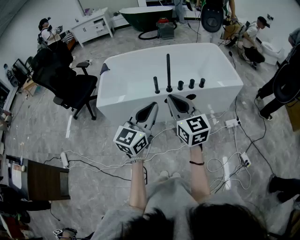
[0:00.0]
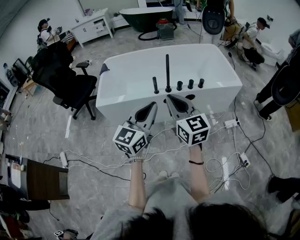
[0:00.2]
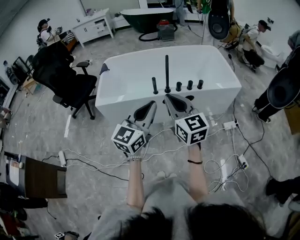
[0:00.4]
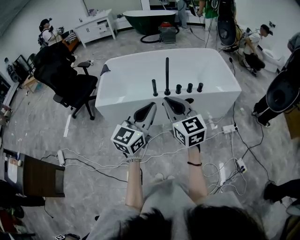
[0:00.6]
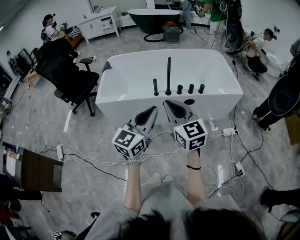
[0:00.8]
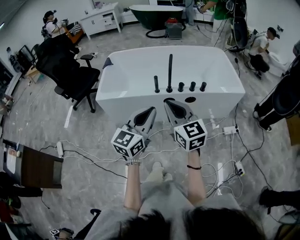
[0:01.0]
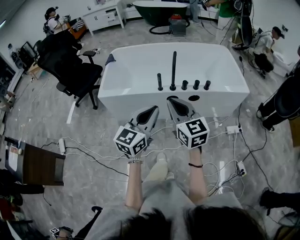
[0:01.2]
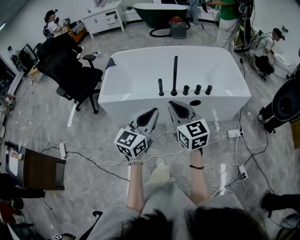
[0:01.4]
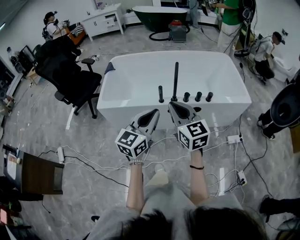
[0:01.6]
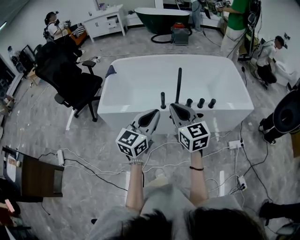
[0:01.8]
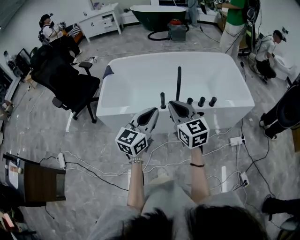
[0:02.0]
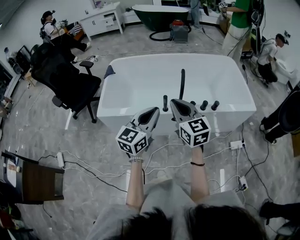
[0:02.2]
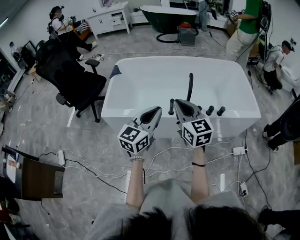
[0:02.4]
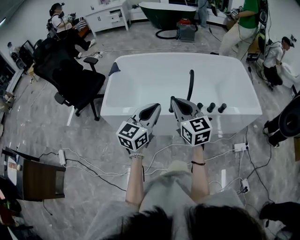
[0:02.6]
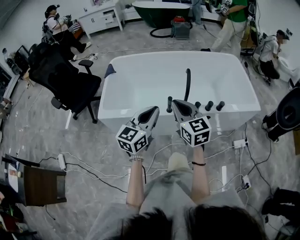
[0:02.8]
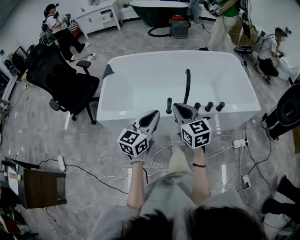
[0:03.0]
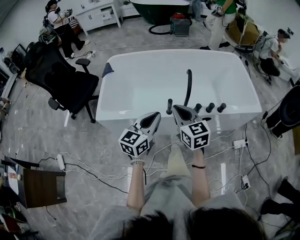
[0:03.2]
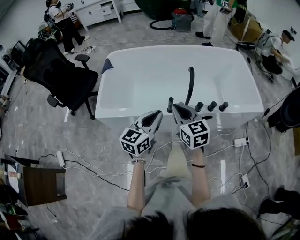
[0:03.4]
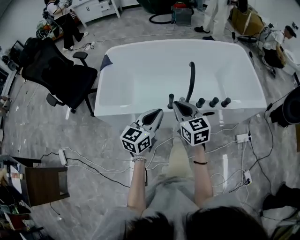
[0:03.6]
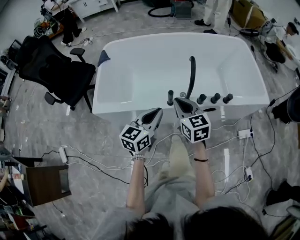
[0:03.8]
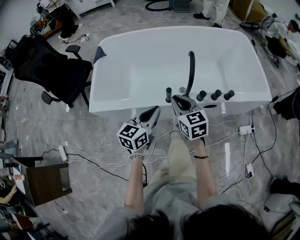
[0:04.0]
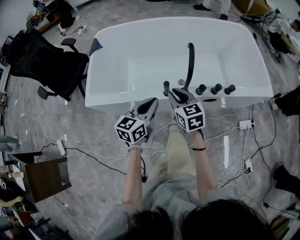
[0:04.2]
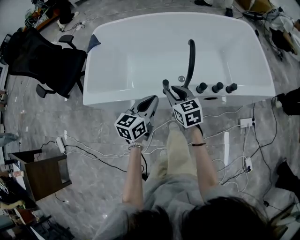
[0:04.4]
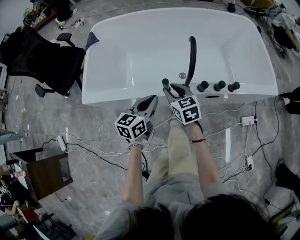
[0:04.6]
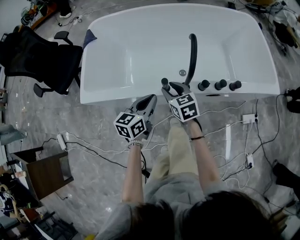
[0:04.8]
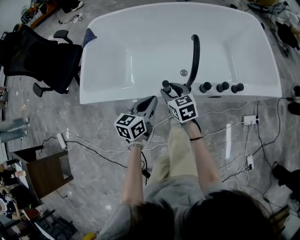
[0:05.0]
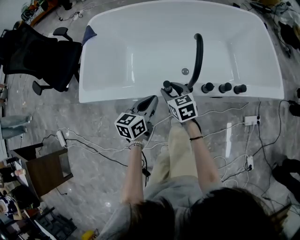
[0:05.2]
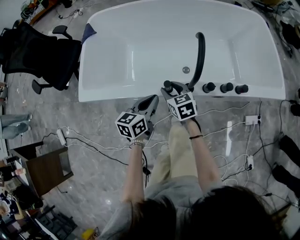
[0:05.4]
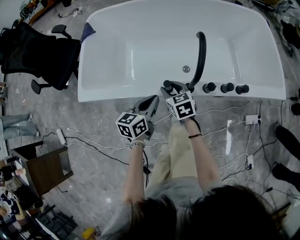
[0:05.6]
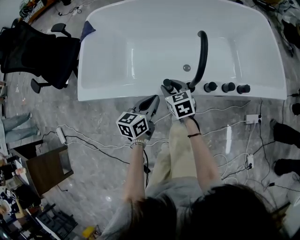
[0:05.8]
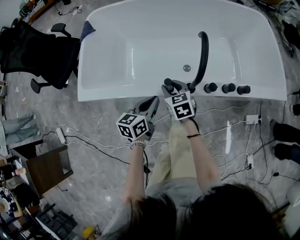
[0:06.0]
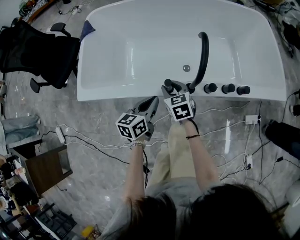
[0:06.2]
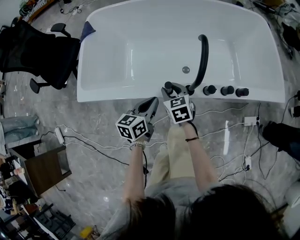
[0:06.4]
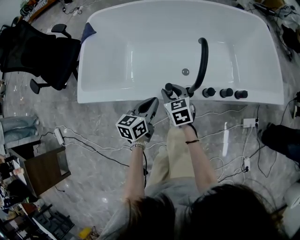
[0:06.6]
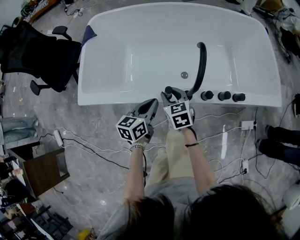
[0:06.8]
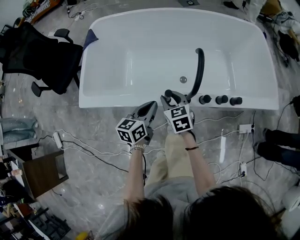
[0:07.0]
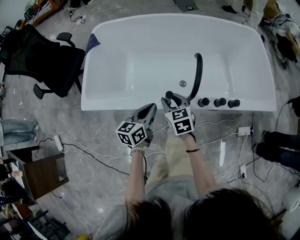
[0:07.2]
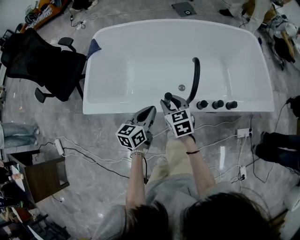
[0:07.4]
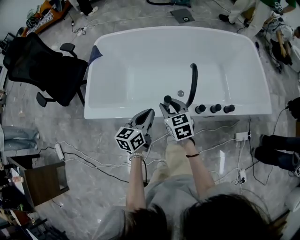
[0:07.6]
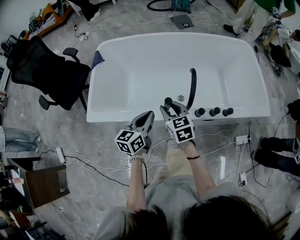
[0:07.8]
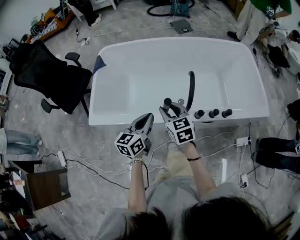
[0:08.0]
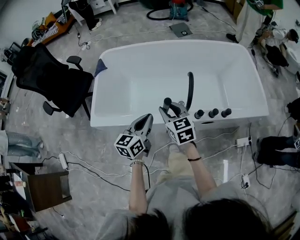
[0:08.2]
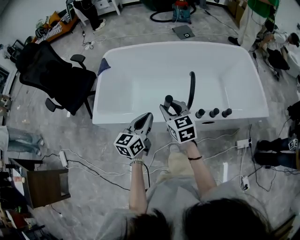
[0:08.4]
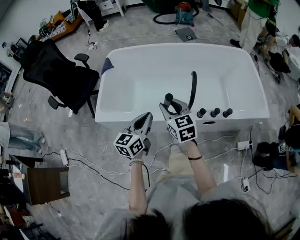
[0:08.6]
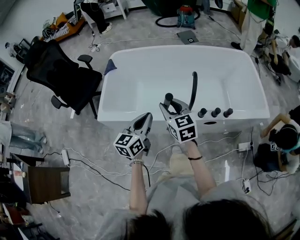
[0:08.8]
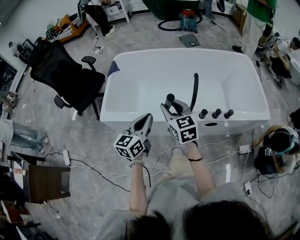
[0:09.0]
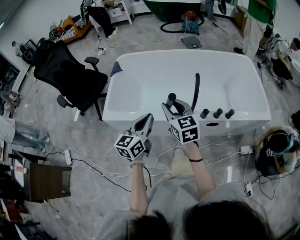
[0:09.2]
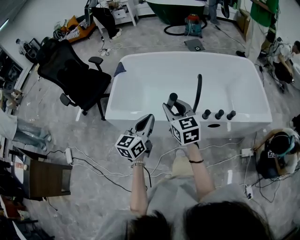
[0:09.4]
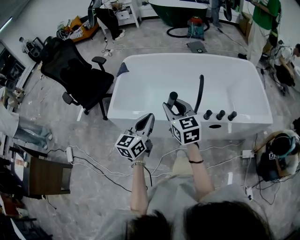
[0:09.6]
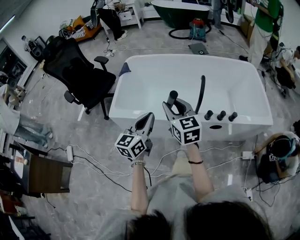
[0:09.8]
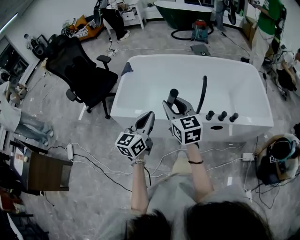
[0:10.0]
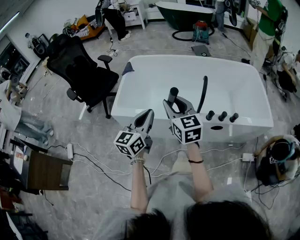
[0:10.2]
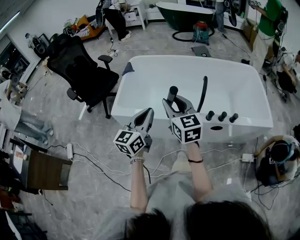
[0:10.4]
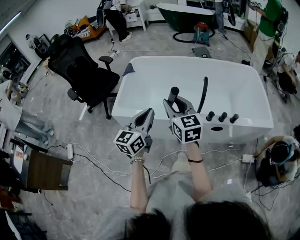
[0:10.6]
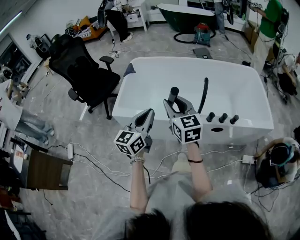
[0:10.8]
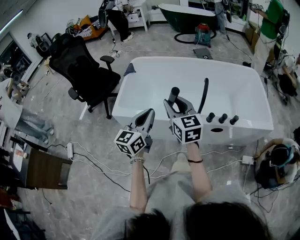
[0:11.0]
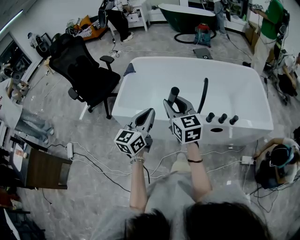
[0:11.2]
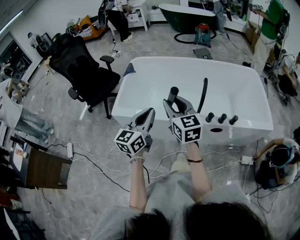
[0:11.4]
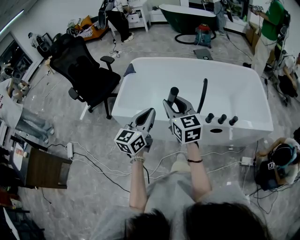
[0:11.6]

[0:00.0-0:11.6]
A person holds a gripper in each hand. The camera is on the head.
0:00.0 to 0:01.4: The left gripper changes place by about 5 cm; the right gripper shifts by about 5 cm.
0:01.4 to 0:02.8: The right gripper heads forward, covering some 20 cm, while the left gripper travels forward and to the left by about 20 cm.
0:02.8 to 0:04.4: Both grippers move downward and forward, some 25 cm. The left gripper turns by roughly 20 degrees; the right gripper rotates approximately 20 degrees.
0:04.4 to 0:05.8: The left gripper heads downward, covering some 10 cm. The right gripper heads downward and forward, covering approximately 15 cm.
0:05.8 to 0:07.2: Both grippers travel together upward, about 5 cm.
0:07.2 to 0:08.8: The right gripper moves upward, roughly 20 cm. Meanwhile the left gripper travels upward and backward by roughly 15 cm.
0:08.8 to 0:10.2: The left gripper moves backward, upward and to the left, approximately 10 cm. Meanwhile the right gripper heads upward and backward, covering about 10 cm.
0:10.2 to 0:11.6: The grippers make only small movements.

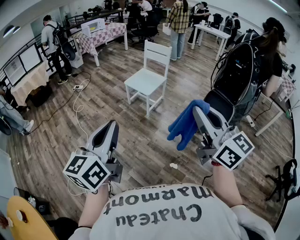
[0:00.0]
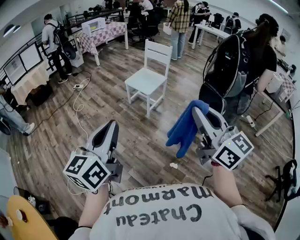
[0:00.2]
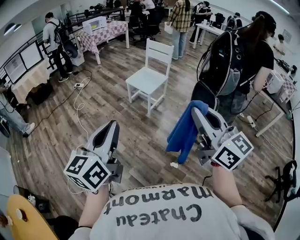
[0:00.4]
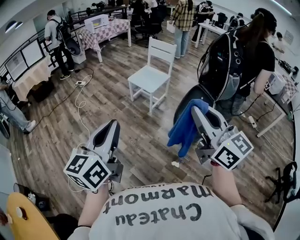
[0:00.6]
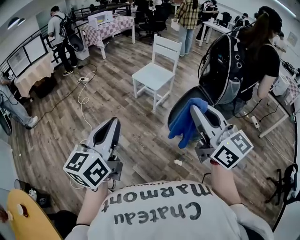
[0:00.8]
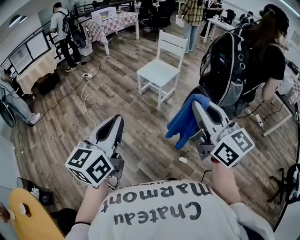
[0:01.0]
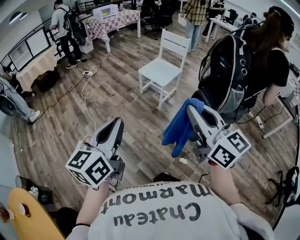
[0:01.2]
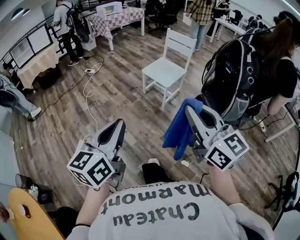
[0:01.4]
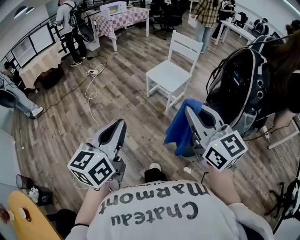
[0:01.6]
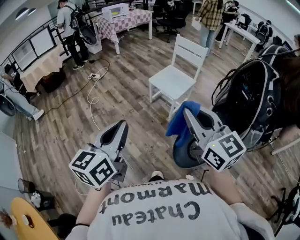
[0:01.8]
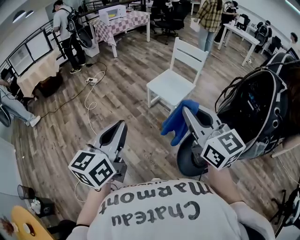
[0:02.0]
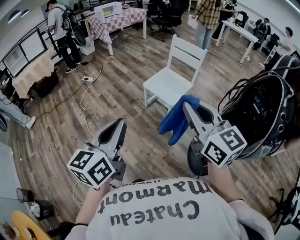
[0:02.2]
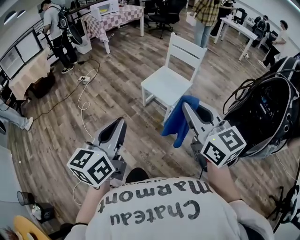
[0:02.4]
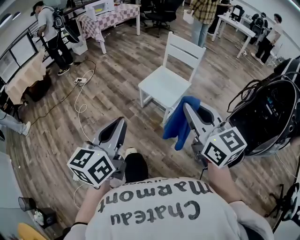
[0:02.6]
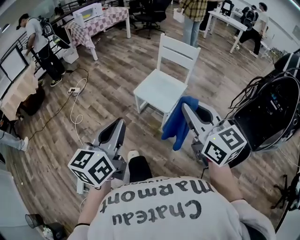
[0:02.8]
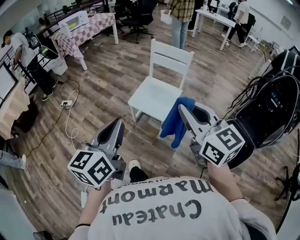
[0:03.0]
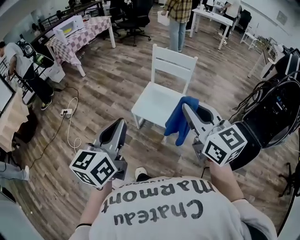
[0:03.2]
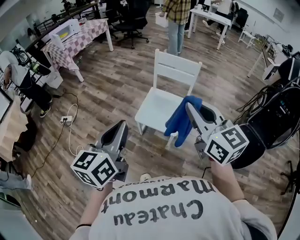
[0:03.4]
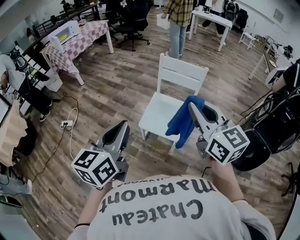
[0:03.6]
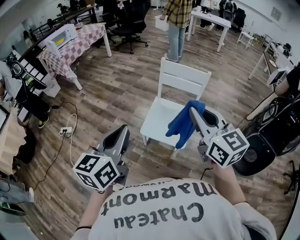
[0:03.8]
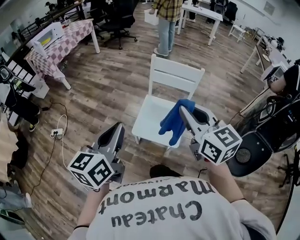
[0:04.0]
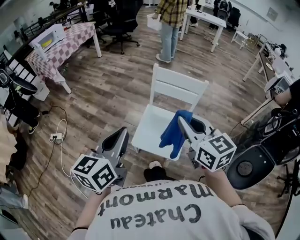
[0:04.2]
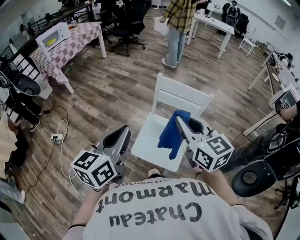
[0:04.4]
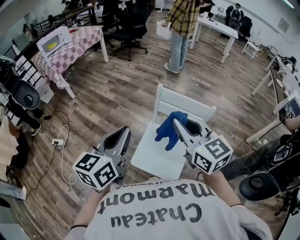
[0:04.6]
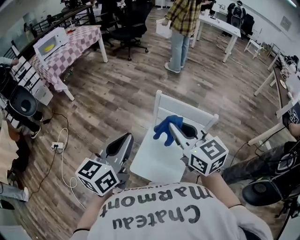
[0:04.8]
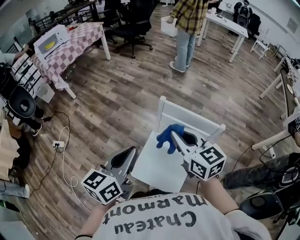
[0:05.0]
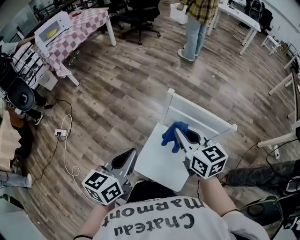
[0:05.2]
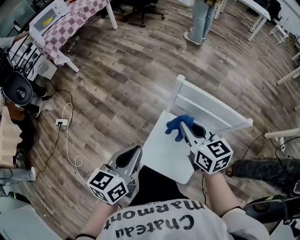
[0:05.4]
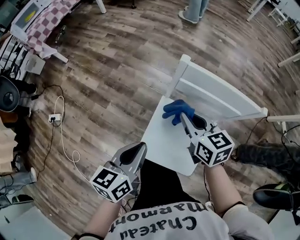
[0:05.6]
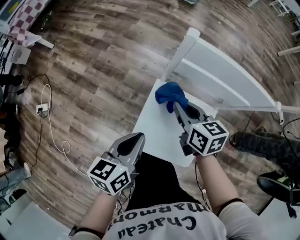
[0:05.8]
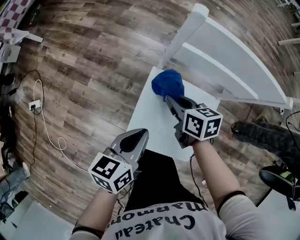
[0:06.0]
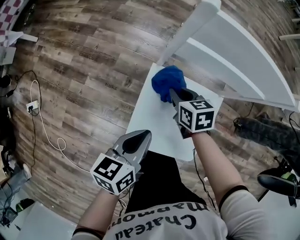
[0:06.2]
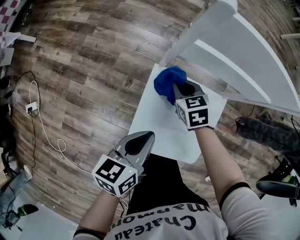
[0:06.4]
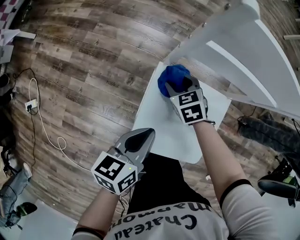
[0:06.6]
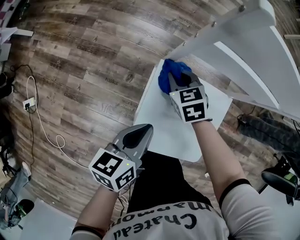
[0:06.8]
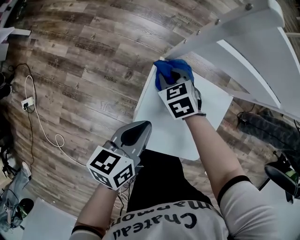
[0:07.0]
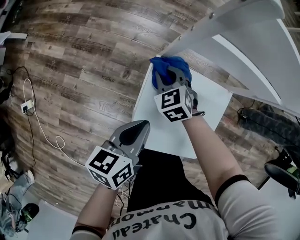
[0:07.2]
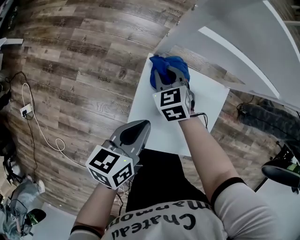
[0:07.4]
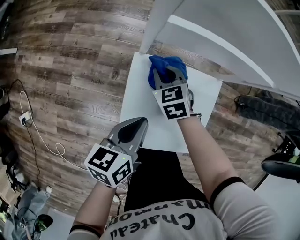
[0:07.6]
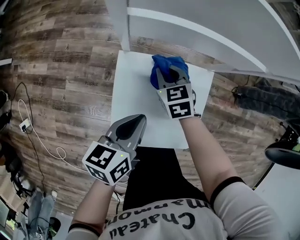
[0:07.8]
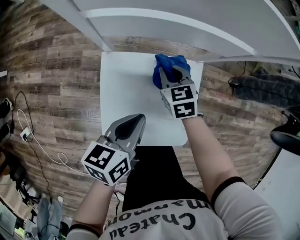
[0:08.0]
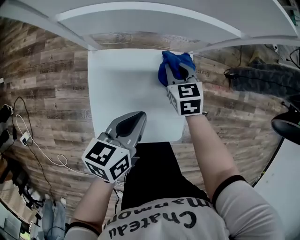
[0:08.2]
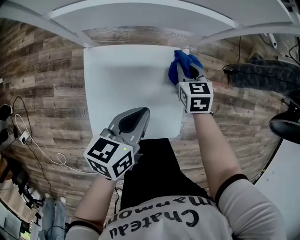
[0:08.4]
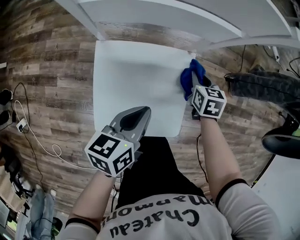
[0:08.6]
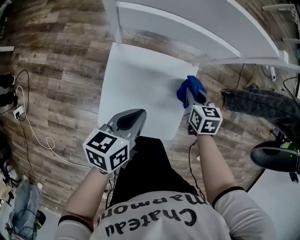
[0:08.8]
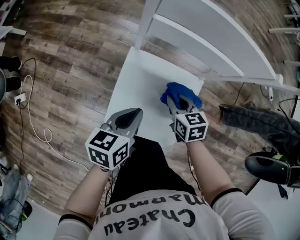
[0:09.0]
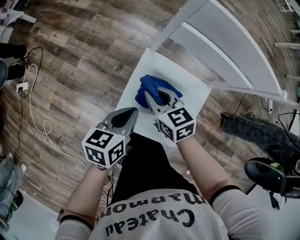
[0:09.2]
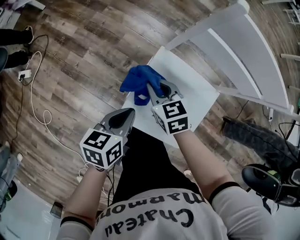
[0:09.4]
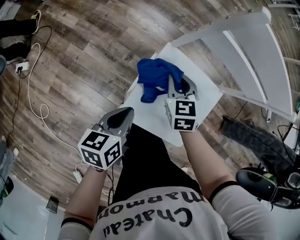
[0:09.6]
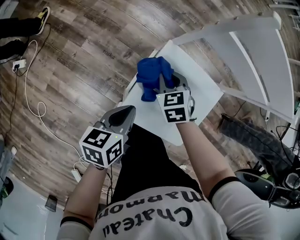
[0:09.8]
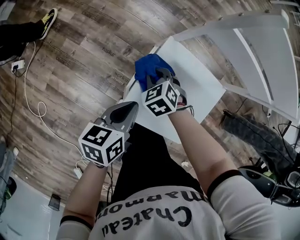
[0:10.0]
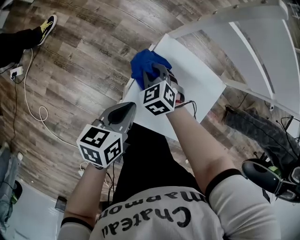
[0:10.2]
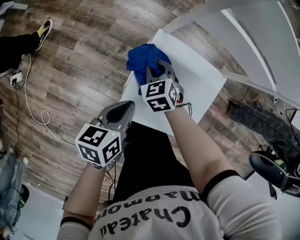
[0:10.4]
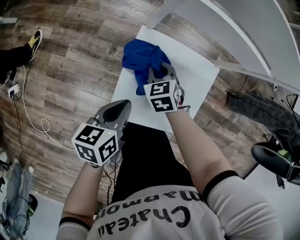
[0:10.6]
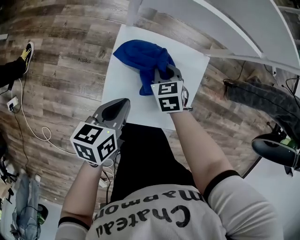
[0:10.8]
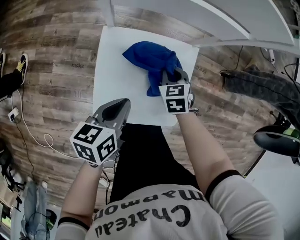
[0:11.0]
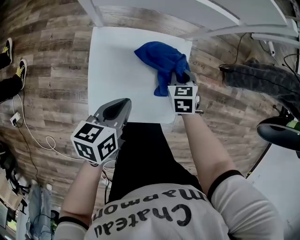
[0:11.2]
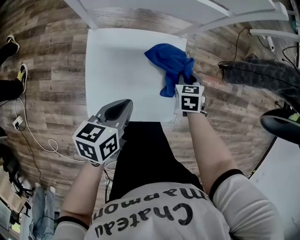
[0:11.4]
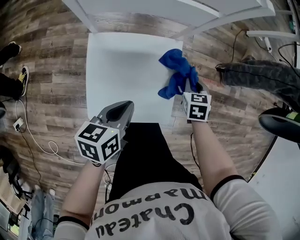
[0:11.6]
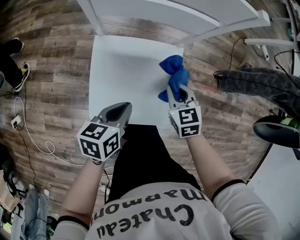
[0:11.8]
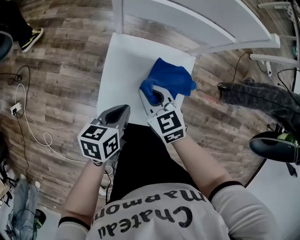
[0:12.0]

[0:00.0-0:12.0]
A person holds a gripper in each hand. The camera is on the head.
0:00.0 to 0:01.6: The right gripper is displaced forward and to the left by roughly 20 cm, while the left gripper is displaced forward, to the left and downward by about 15 cm.
0:01.6 to 0:03.0: Both grippers move forward, some 40 cm.
0:03.0 to 0:04.4: The pair of grippers is taken forward, about 40 cm.
0:04.4 to 0:06.0: The left gripper heads downward, covering roughly 40 cm, and changes its angle by some 30 degrees; the right gripper moves downward and forward, approximately 50 cm, and swivels approximately 50 degrees.
0:06.0 to 0:07.6: The right gripper travels downward and forward by some 15 cm, rotates roughly 30 degrees, and opens, then closes once more, while the left gripper heads downward, covering some 10 cm.
0:09.0 to 0:10.4: The right gripper moves left and right over some 20 cm, changing direction 2 times, and rotates approximately 30 degrees; the left gripper moves to the left and downward, some 10 cm.
0:10.4 to 0:12.0: The right gripper rotates some 20 degrees.
